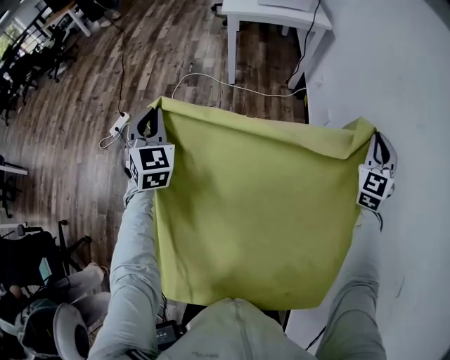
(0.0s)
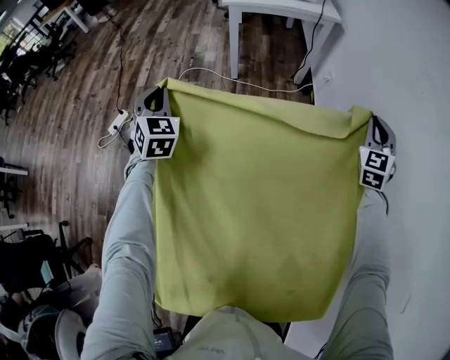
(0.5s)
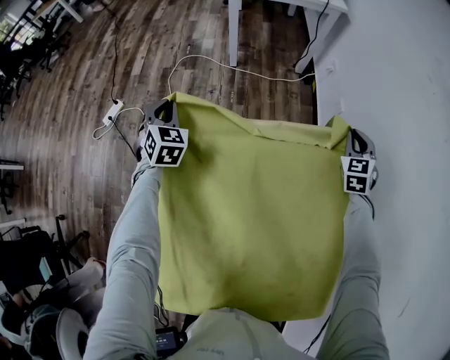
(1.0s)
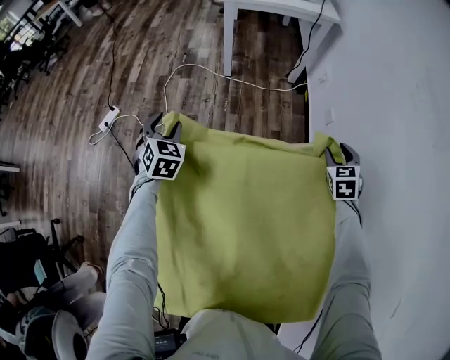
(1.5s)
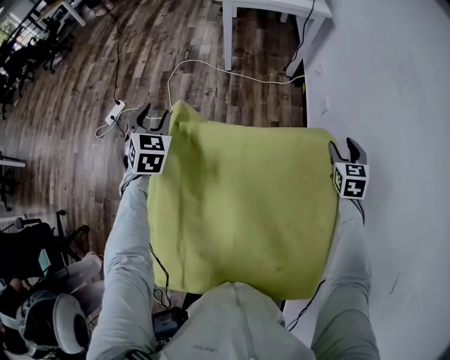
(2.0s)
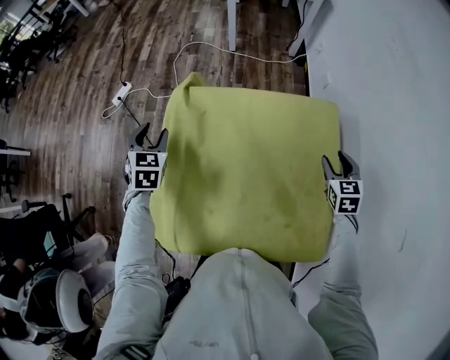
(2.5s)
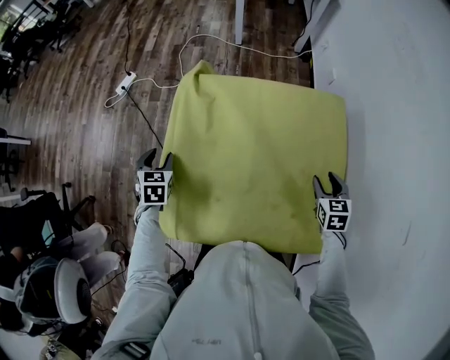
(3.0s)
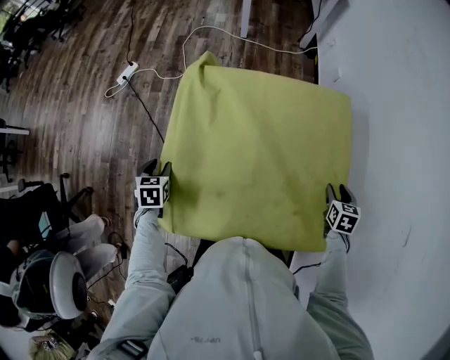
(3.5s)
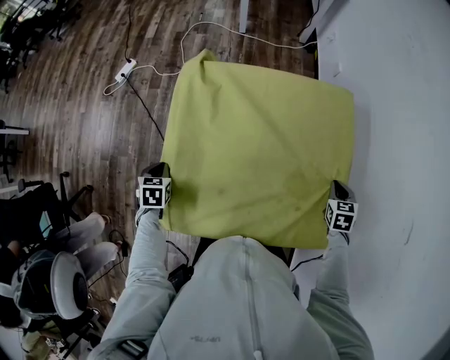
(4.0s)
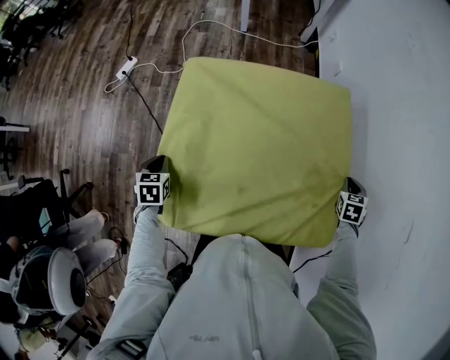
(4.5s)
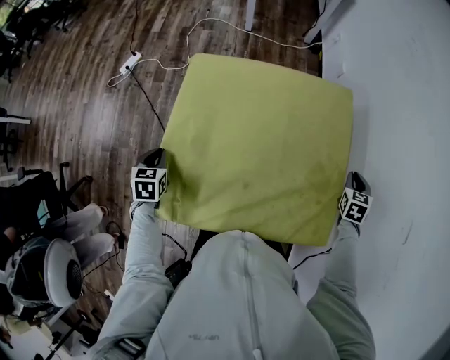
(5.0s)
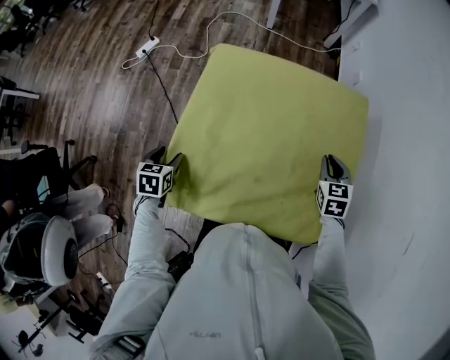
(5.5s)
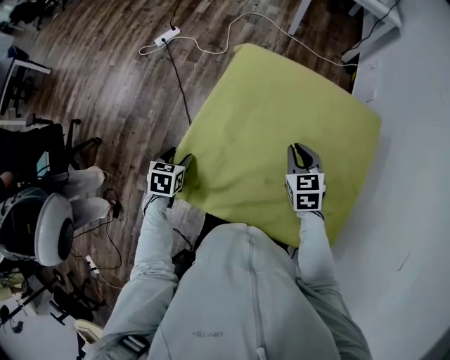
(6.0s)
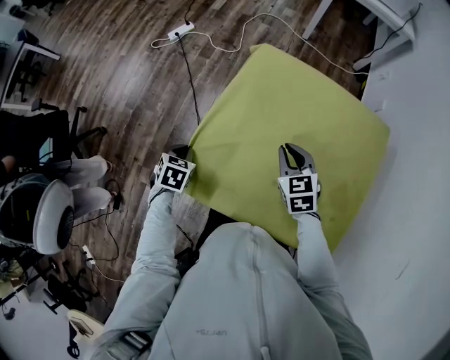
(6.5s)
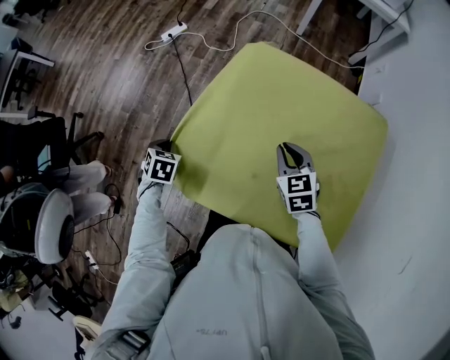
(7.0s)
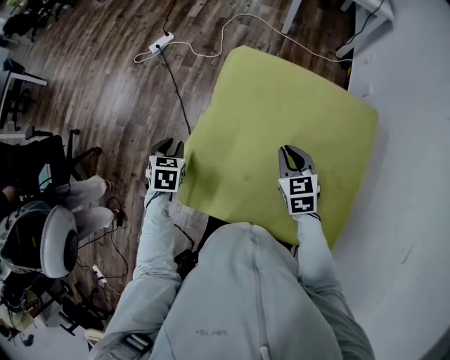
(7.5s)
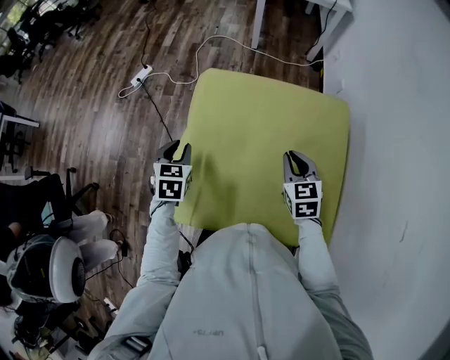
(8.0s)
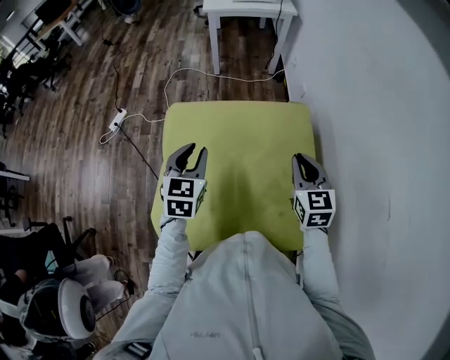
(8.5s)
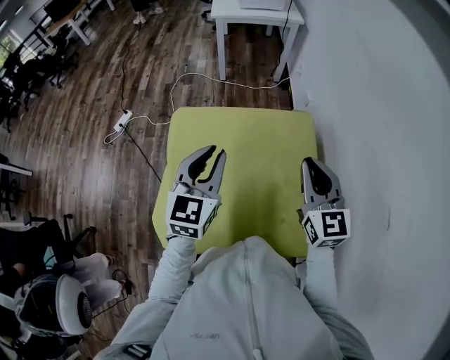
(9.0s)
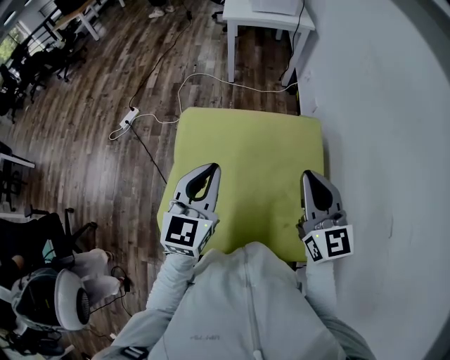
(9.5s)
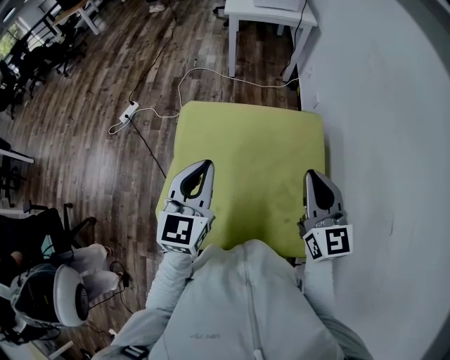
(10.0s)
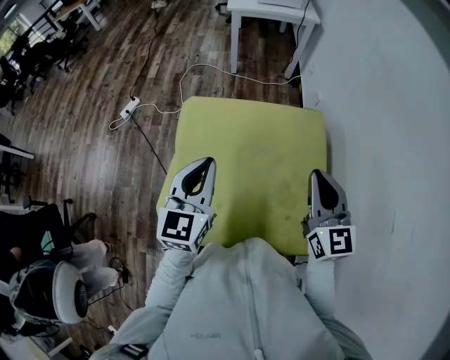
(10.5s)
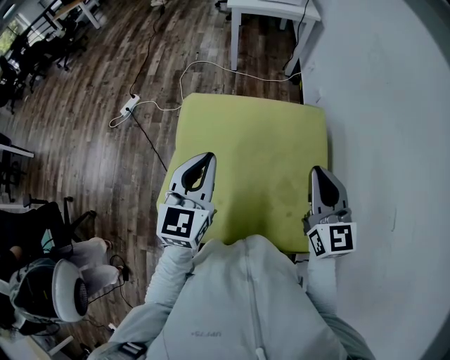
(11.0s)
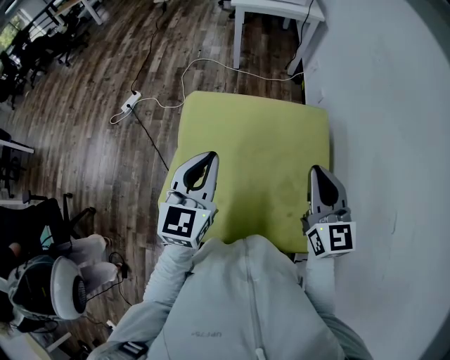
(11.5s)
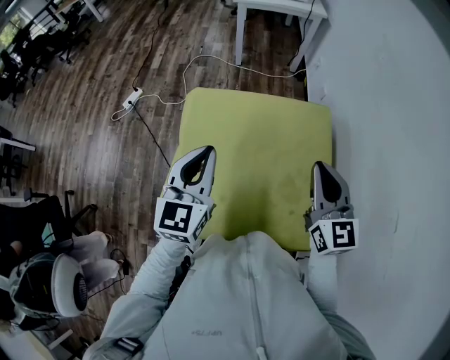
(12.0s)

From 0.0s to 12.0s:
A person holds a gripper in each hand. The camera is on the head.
From 0.0s to 2.0s: The right gripper goes about 15 cm downward, rotates roughly 30 degrees, and opens up, while the left gripper travels downward by approximately 10 cm, and opens up.
From 2.0s to 4.0s: The left gripper is displaced backward and downward by about 40 cm, swivels roughly 40 degrees, and closes, while the right gripper moves backward, about 30 cm, and closes up.
From 4.0s to 6.0s: The right gripper moves approximately 30 cm, and rotates about 30 degrees, while the left gripper ends up about 10 cm from where it was, and opens up.
From 6.0s to 8.0s: The right gripper goes some 10 cm upward and to the right. The left gripper travels upward, to the right and forward by some 15 cm, turns by approximately 20 degrees, and closes up.
From 8.0s to 10.0s: The left gripper moves upward and to the right, approximately 25 cm, points its fingers approximately 30 degrees further upward, and closes up; the right gripper travels upward by about 20 cm, and angles its fingers upward, by some 30 degrees.
From 10.0s to 12.0s: The grippers make only small movements.

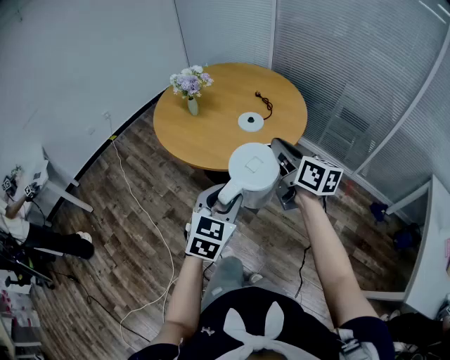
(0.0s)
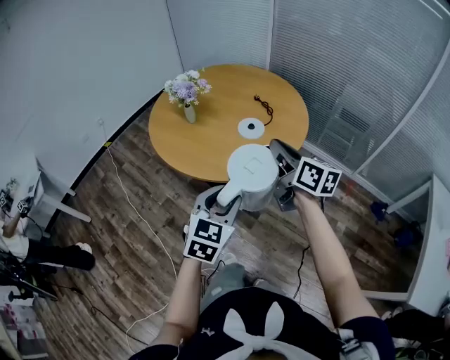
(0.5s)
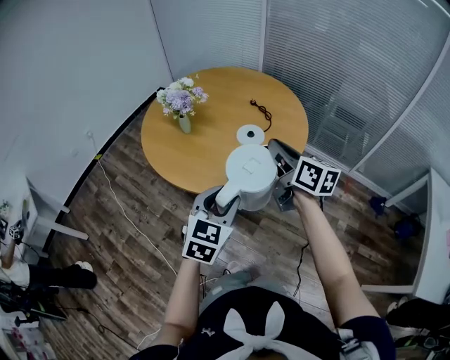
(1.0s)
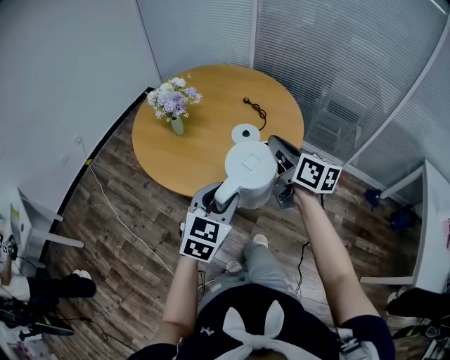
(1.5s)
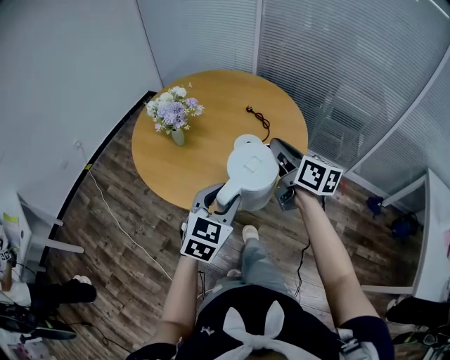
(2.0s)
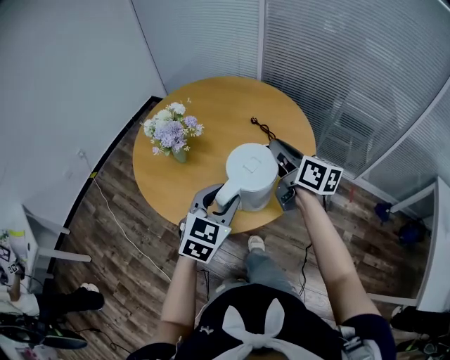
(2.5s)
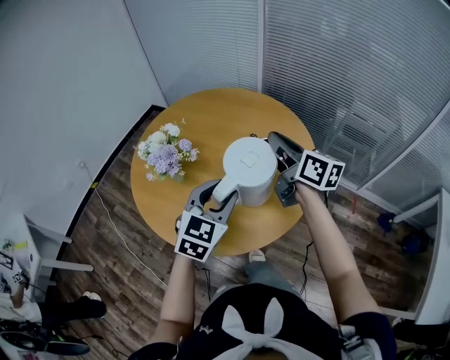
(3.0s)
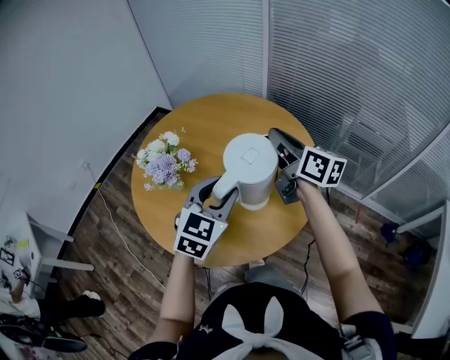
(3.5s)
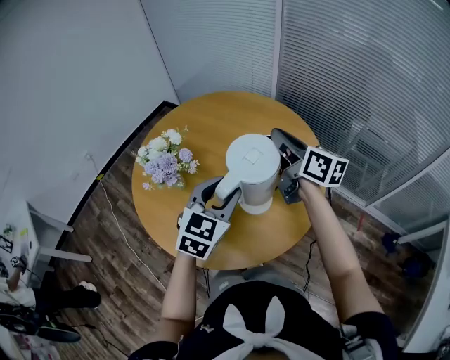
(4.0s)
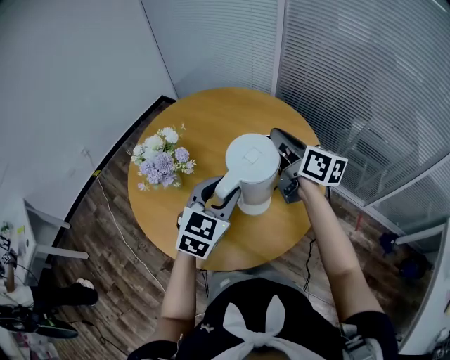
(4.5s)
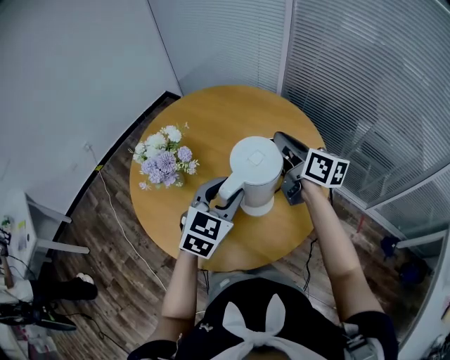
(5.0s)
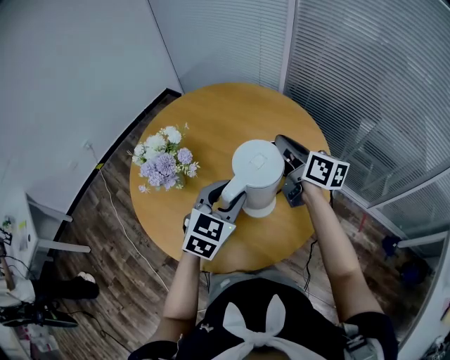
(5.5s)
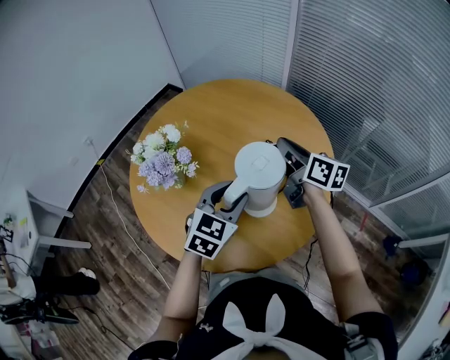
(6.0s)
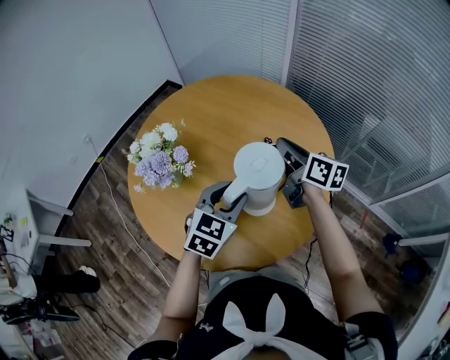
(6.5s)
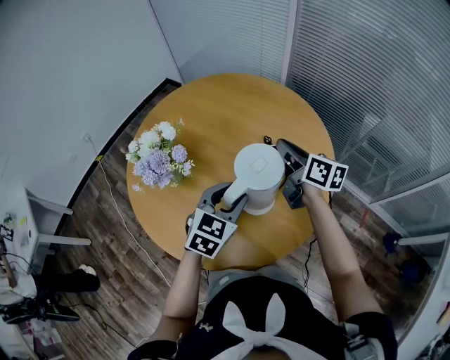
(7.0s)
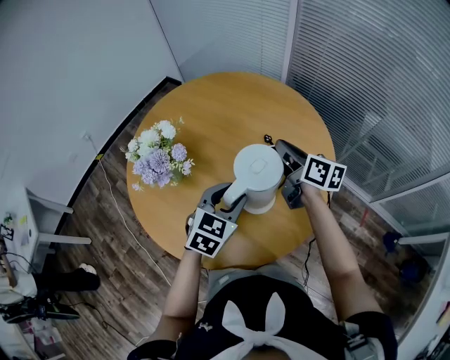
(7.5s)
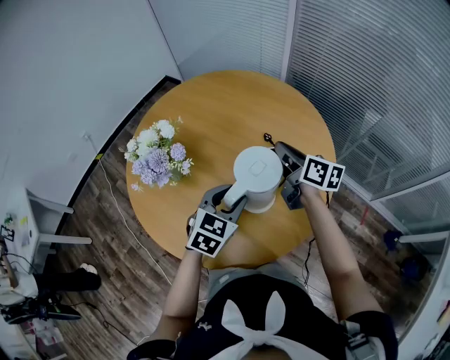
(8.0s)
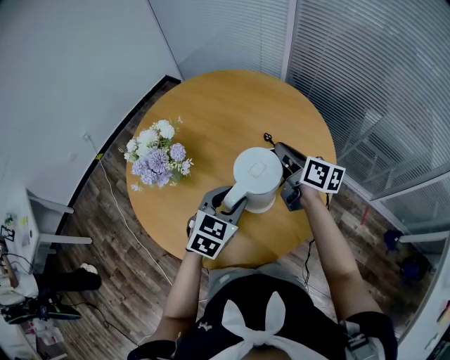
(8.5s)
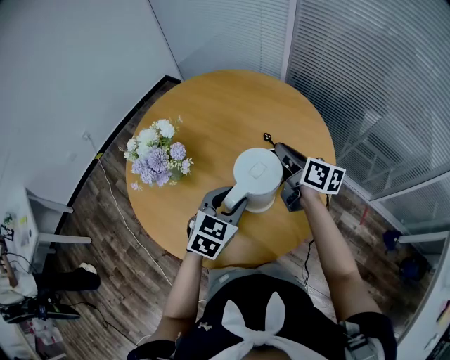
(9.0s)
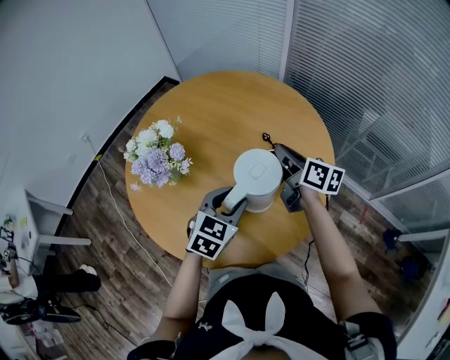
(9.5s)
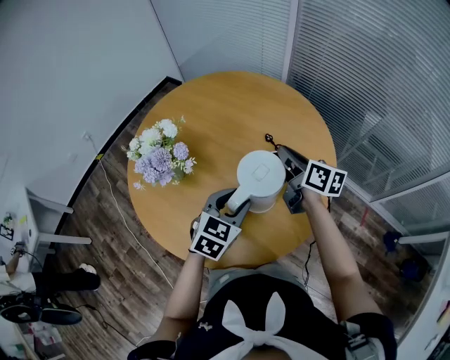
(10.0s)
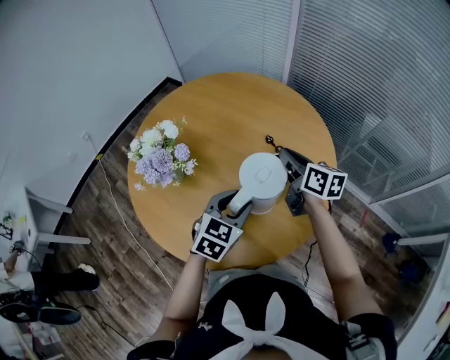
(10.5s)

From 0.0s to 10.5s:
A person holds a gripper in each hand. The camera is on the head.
From 0.0s to 2.0s: The two grippers go about 20 cm forward.
From 2.0s to 4.0s: Both grippers travel together forward, some 25 cm.
From 4.0s to 6.5s: Both grippers travel together downward, approximately 10 cm.
From 6.5s to 10.5s: The grippers make only small movements.

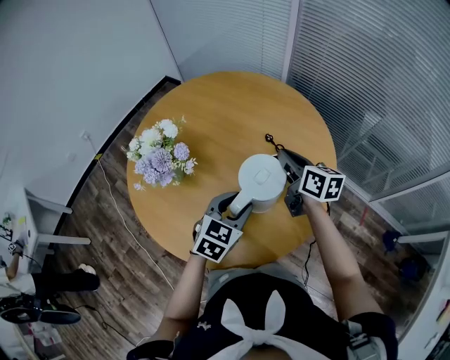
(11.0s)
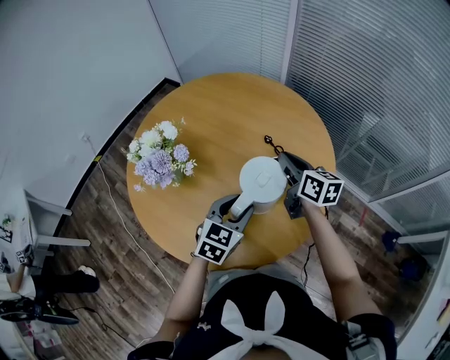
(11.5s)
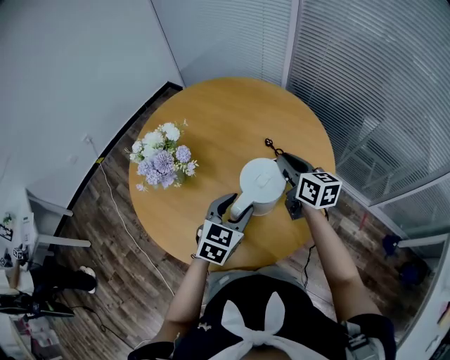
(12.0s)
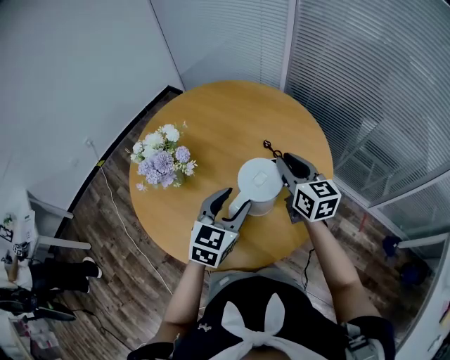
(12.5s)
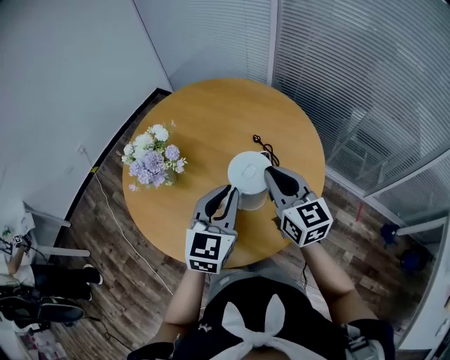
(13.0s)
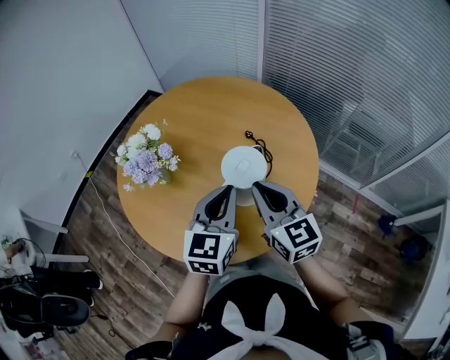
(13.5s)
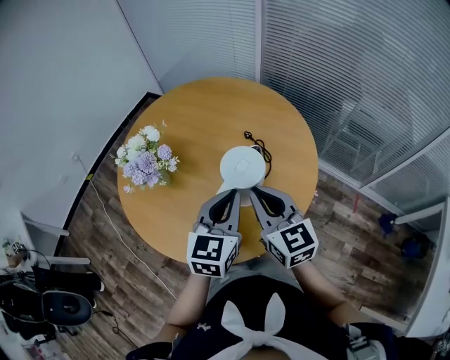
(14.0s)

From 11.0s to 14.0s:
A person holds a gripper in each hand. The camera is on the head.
From 11.0s to 12.5s: The right gripper changes place by some 5 cm, and swivels about 20 degrees, while the left gripper goes about 5 cm upward.
From 12.5s to 14.0s: The left gripper changes place by some 5 cm, and closes up. Meanwhile the right gripper heads backward, covering about 15 cm.

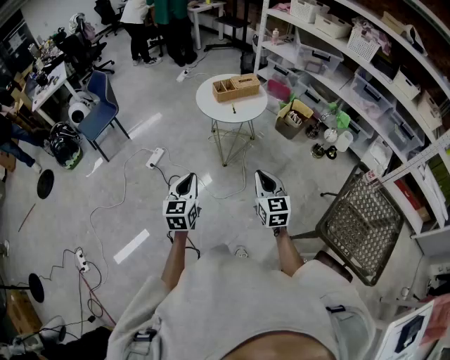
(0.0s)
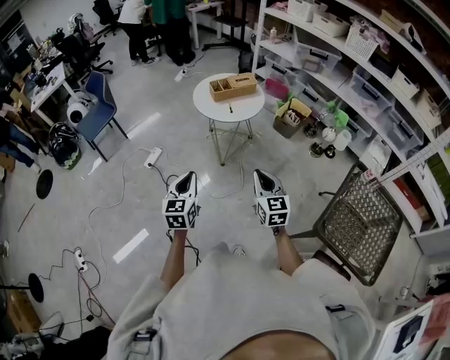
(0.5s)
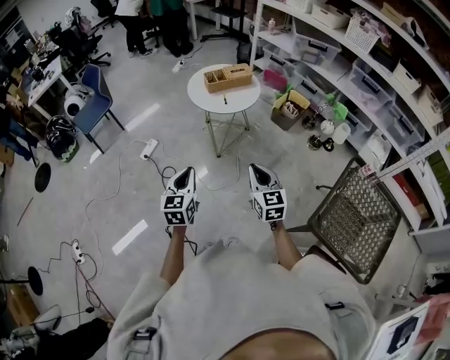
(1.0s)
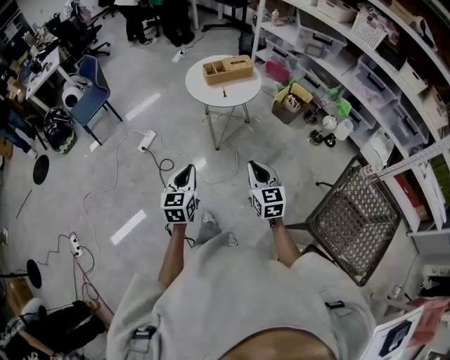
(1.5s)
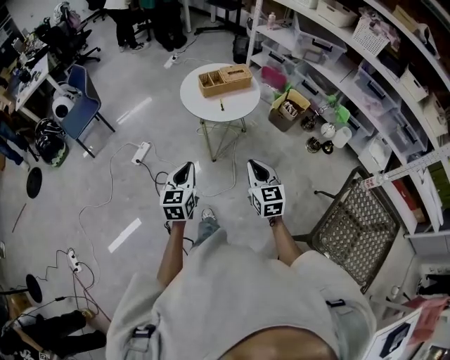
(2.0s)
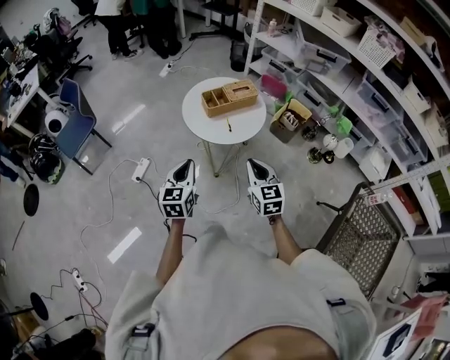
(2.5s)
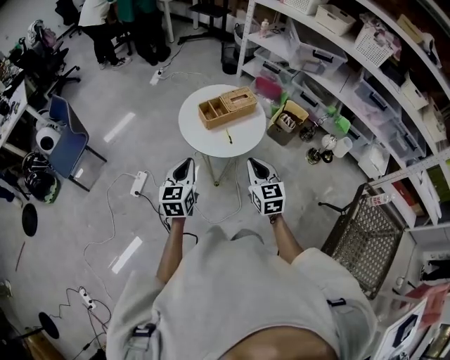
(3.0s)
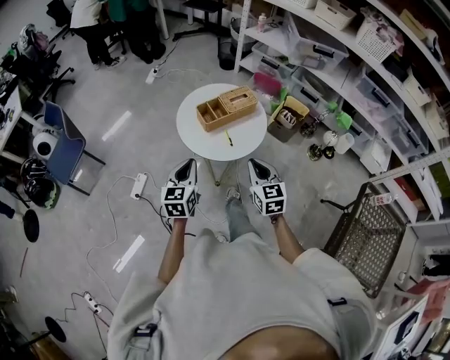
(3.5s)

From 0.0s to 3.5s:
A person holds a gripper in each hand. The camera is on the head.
From 0.0s to 2.0s: The left gripper goes about 15 cm forward and to the right. Meanwhile the right gripper shifts about 10 cm forward.
From 2.0s to 3.5s: The grippers both shift forward by about 25 cm.
